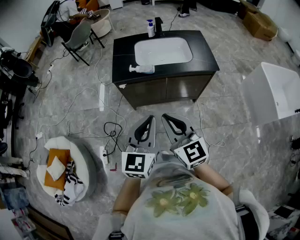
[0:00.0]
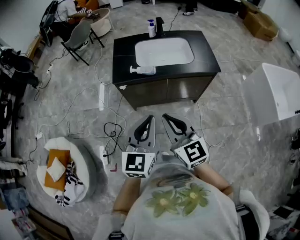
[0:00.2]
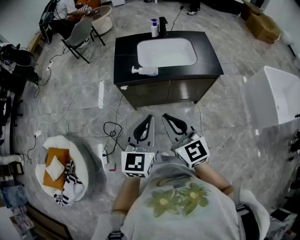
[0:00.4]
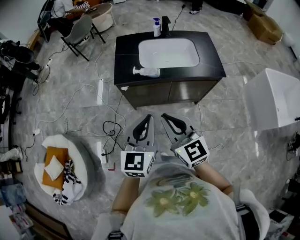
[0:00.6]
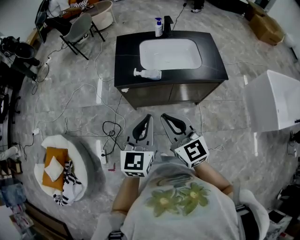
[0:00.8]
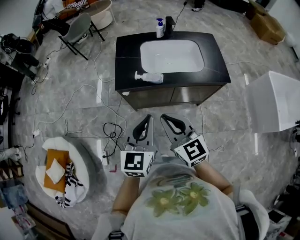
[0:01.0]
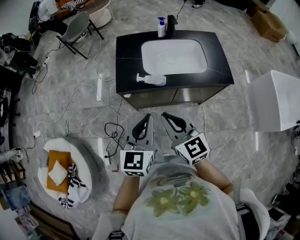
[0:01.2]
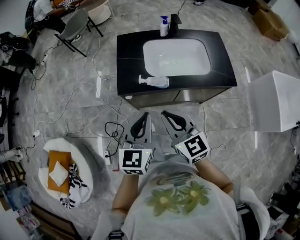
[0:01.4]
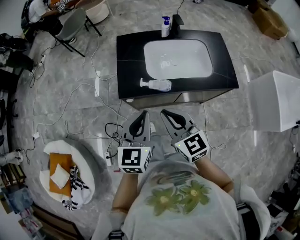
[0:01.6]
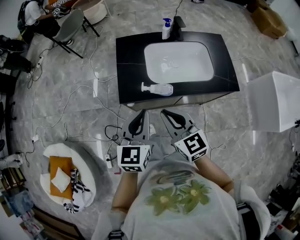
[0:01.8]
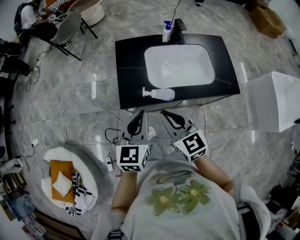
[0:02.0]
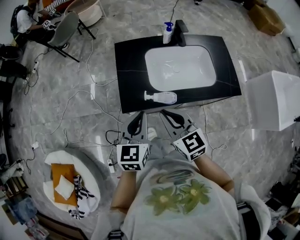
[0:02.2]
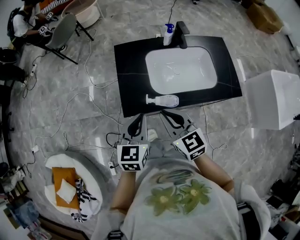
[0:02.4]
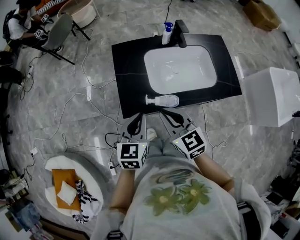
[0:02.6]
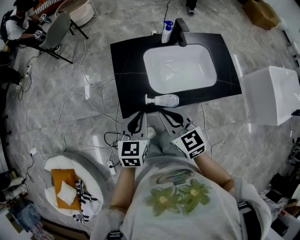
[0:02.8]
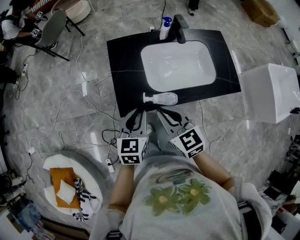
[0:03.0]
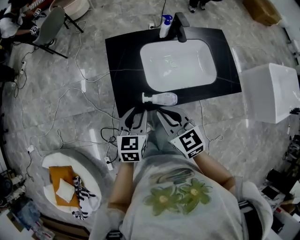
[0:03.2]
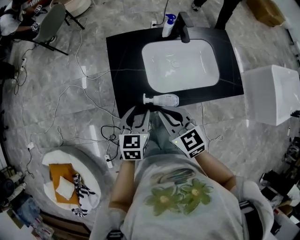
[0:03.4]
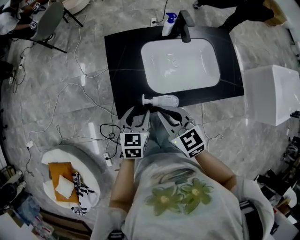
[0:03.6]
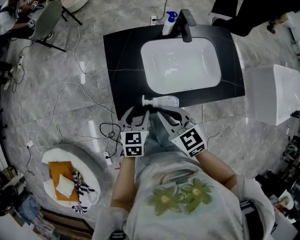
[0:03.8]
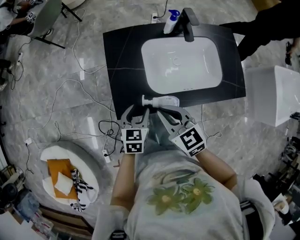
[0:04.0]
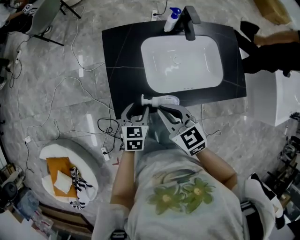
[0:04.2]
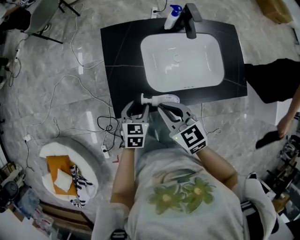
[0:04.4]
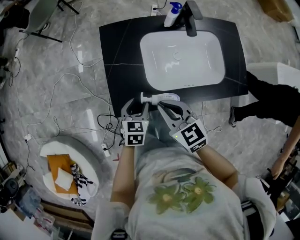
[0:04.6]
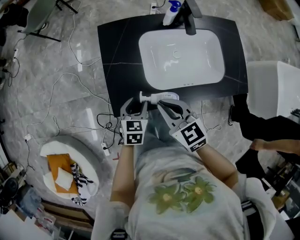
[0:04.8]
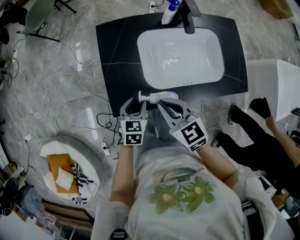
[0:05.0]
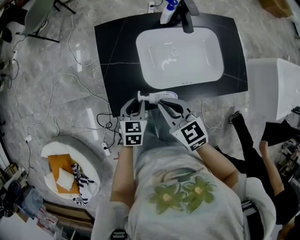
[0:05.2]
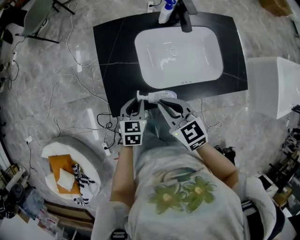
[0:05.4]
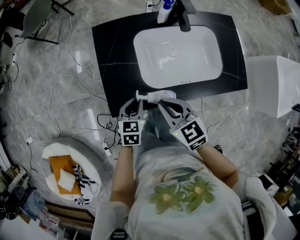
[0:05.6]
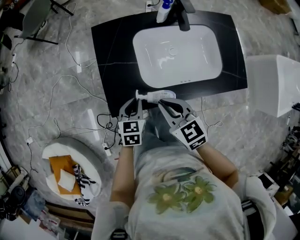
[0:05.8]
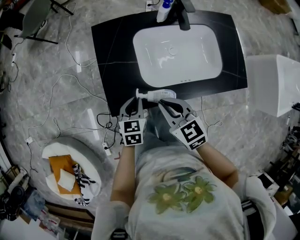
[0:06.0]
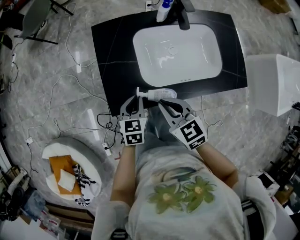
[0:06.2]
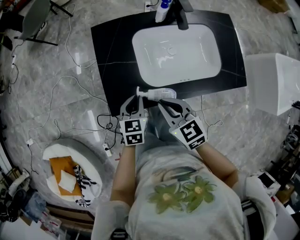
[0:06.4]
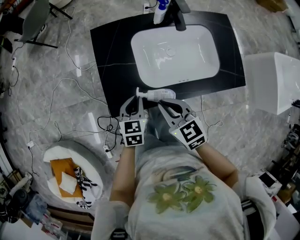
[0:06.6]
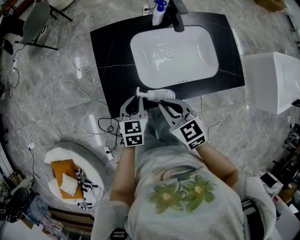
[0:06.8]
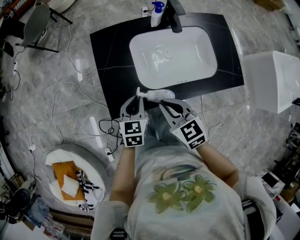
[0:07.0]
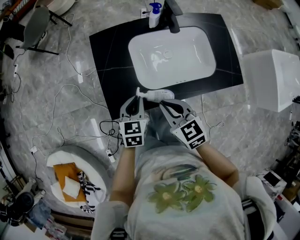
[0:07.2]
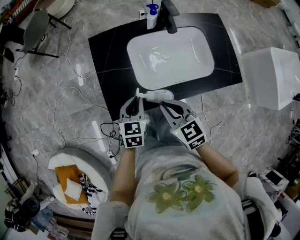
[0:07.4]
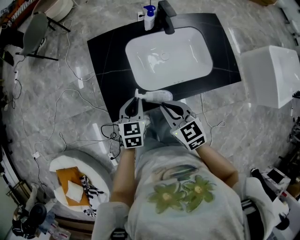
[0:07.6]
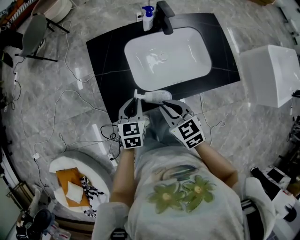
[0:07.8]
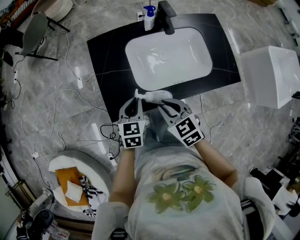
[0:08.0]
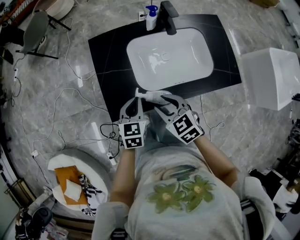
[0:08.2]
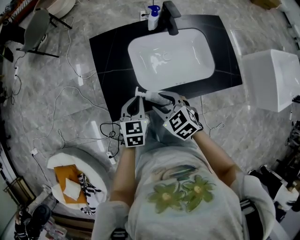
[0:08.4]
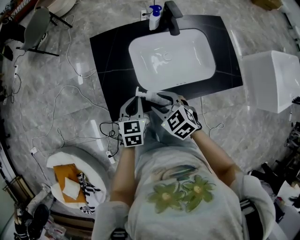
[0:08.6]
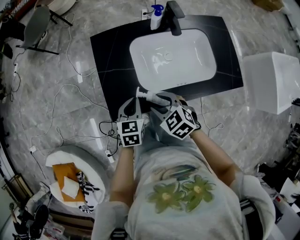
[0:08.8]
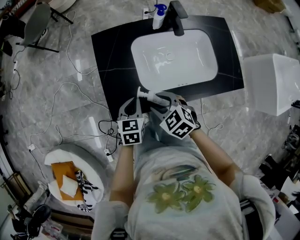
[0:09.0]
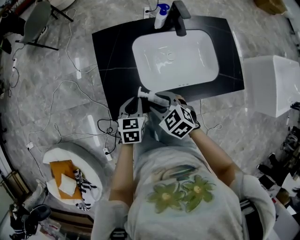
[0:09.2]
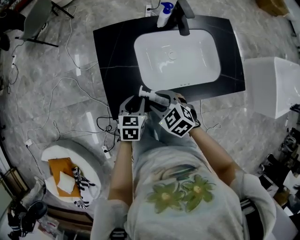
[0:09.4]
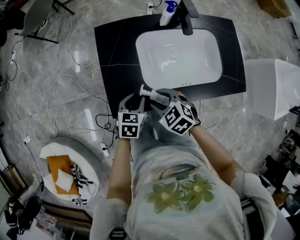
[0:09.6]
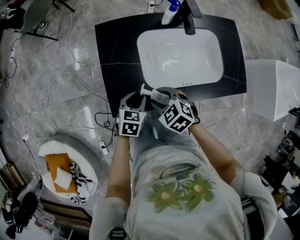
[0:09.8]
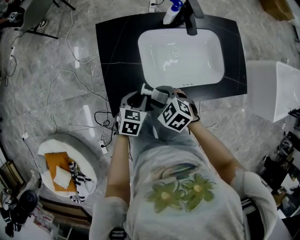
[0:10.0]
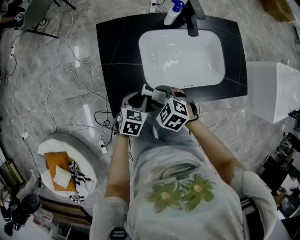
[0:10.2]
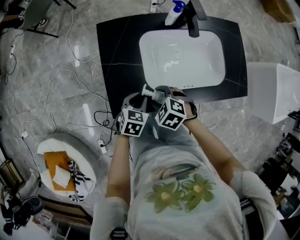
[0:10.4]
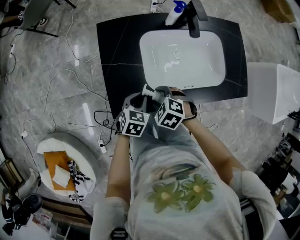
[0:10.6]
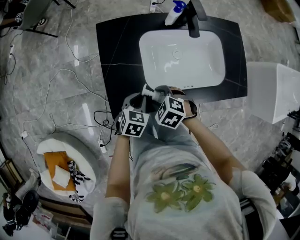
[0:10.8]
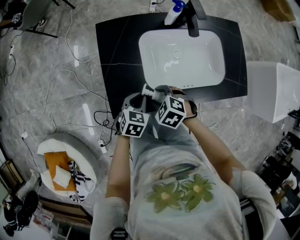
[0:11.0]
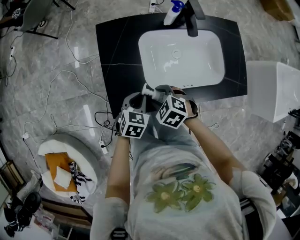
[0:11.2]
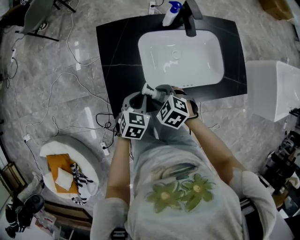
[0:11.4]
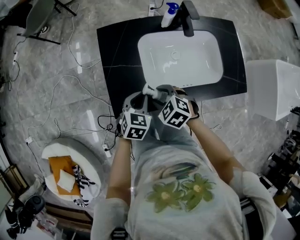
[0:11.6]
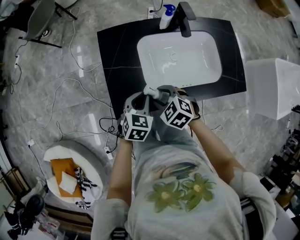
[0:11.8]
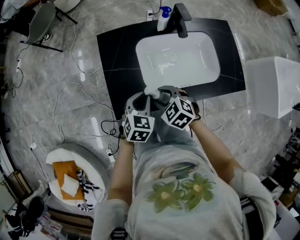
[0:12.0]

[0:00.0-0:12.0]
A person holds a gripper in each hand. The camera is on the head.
0:00.0 to 0:01.6: Both grippers move forward, some 30 cm.
0:01.6 to 0:03.0: The left gripper moves forward and downward, roughly 20 cm, while the right gripper shifts about 15 cm forward.
0:03.0 to 0:04.4: The left gripper heads downward, covering roughly 15 cm, and opens. Meanwhile the right gripper moves downward and forward, roughly 10 cm.
0:04.4 to 0:06.0: The left gripper closes.
0:06.0 to 0:07.6: The left gripper goes some 5 cm upward.
0:07.6 to 0:09.0: The right gripper shifts about 5 cm downward, swivels some 30 degrees, and opens its fingers.
0:09.0 to 0:10.4: The grippers both shift downward by some 5 cm. The right gripper swivels about 20 degrees.
0:10.4 to 0:12.0: The left gripper shifts some 10 cm upward, while the right gripper travels upward by about 5 cm.

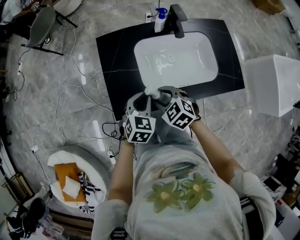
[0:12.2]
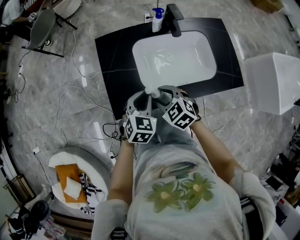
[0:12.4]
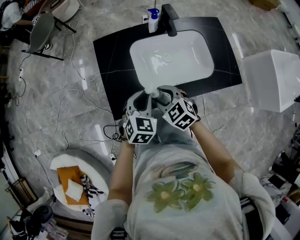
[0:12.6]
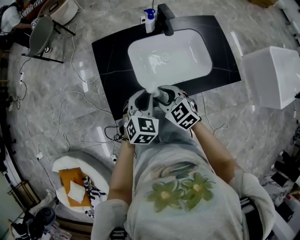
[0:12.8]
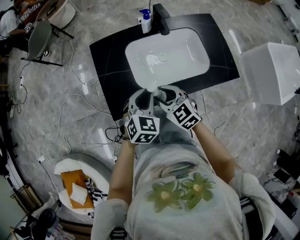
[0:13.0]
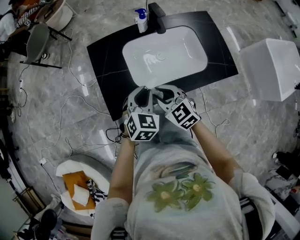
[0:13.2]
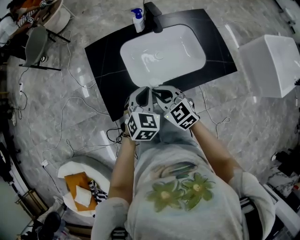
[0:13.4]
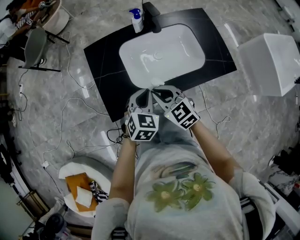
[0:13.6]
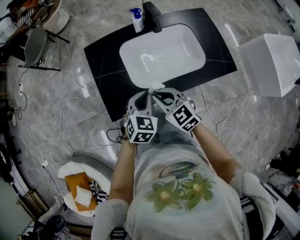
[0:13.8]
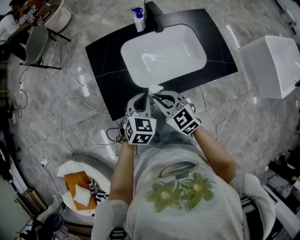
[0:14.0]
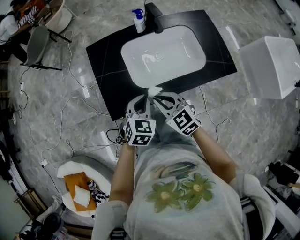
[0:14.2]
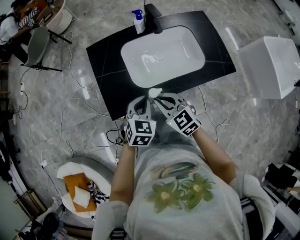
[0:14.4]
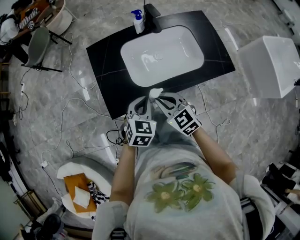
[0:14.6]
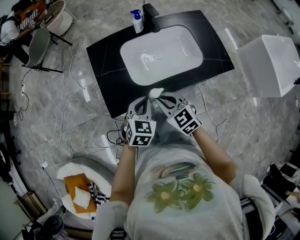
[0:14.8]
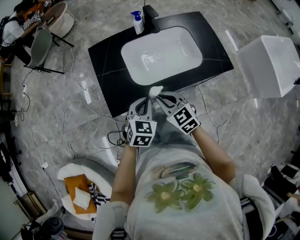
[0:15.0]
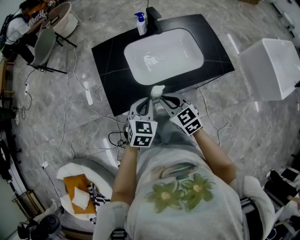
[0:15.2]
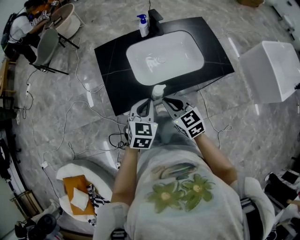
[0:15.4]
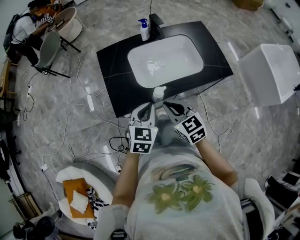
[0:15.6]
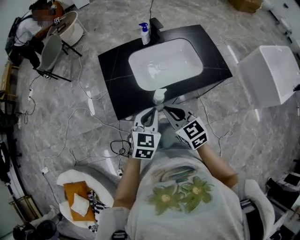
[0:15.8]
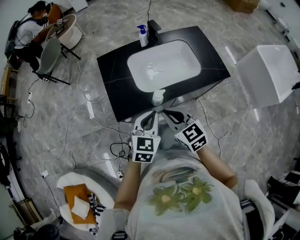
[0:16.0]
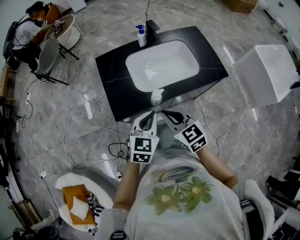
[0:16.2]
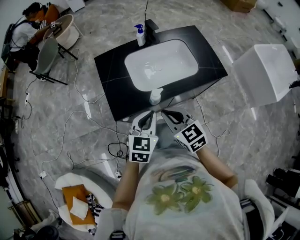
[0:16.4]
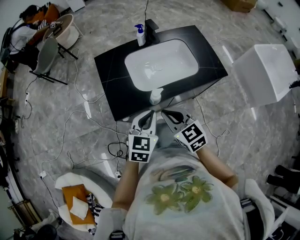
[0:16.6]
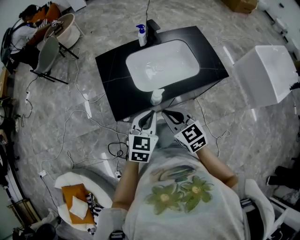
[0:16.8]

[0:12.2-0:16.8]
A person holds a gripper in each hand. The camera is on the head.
0:12.2 to 0:13.8: The right gripper is displaced upward by roughly 5 cm, swivels roughly 30 degrees, and closes up. Meanwhile the left gripper travels to the right by approximately 5 cm.
0:13.8 to 0:15.2: The grippers both shift backward by approximately 5 cm.
0:15.2 to 0:16.8: The right gripper goes approximately 10 cm upward and backward; the left gripper is displaced backward and upward by approximately 10 cm.

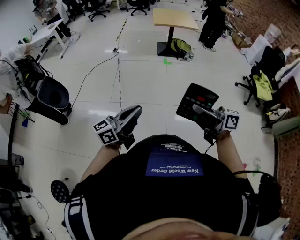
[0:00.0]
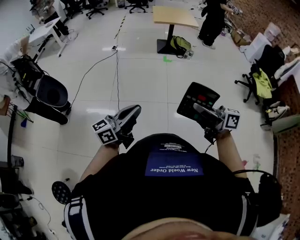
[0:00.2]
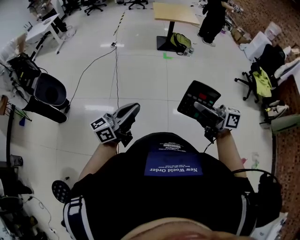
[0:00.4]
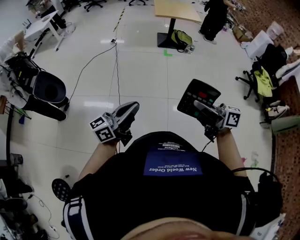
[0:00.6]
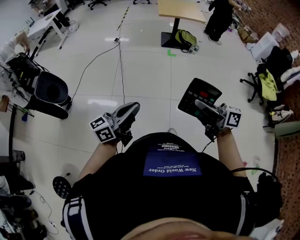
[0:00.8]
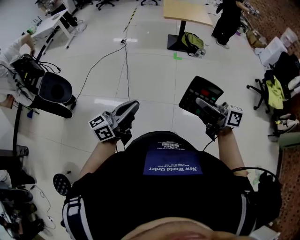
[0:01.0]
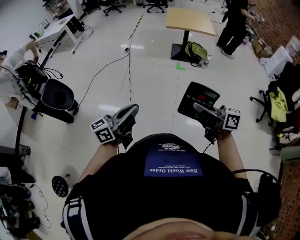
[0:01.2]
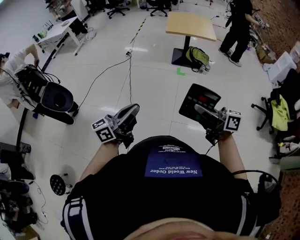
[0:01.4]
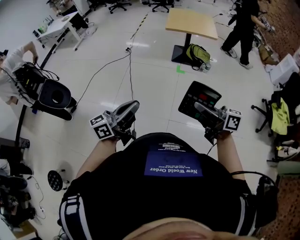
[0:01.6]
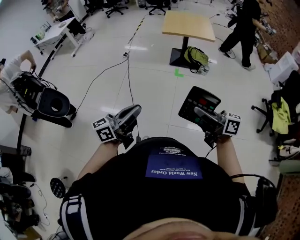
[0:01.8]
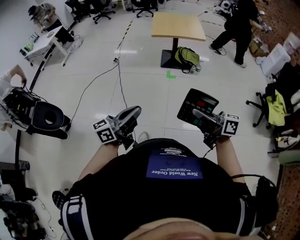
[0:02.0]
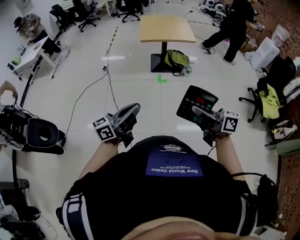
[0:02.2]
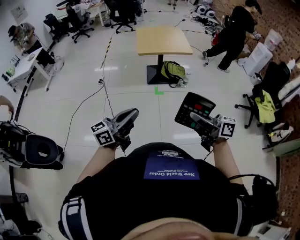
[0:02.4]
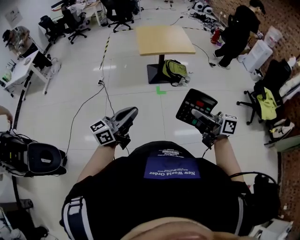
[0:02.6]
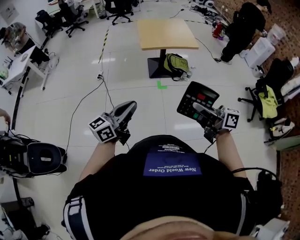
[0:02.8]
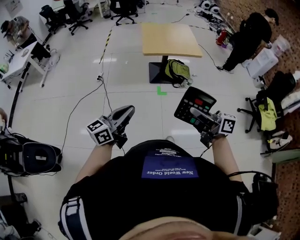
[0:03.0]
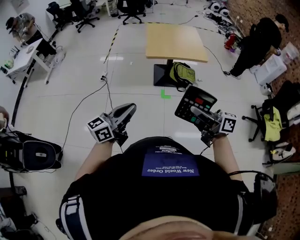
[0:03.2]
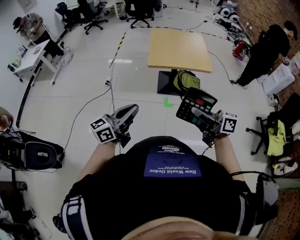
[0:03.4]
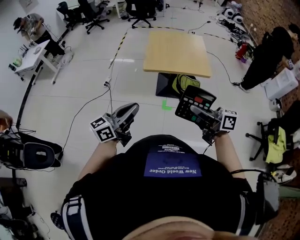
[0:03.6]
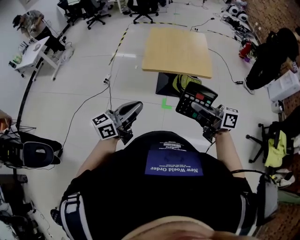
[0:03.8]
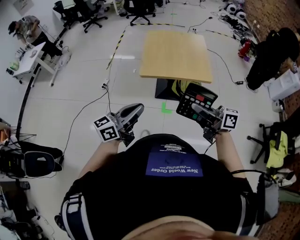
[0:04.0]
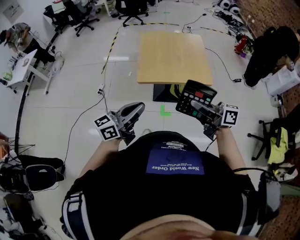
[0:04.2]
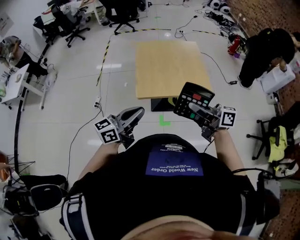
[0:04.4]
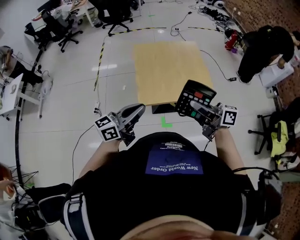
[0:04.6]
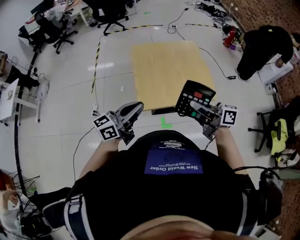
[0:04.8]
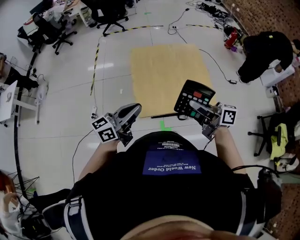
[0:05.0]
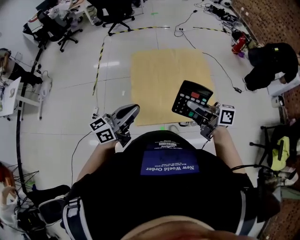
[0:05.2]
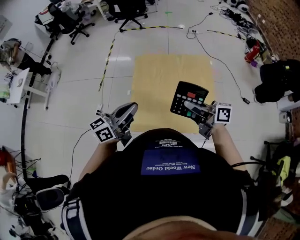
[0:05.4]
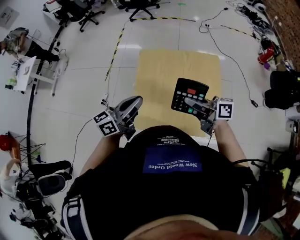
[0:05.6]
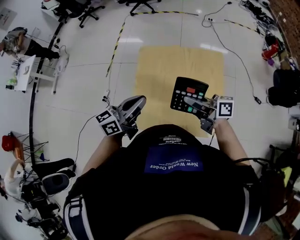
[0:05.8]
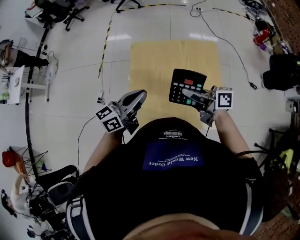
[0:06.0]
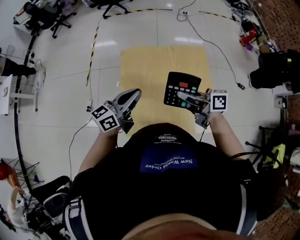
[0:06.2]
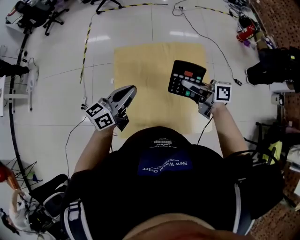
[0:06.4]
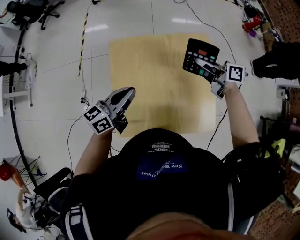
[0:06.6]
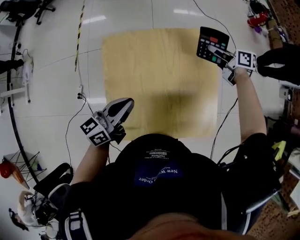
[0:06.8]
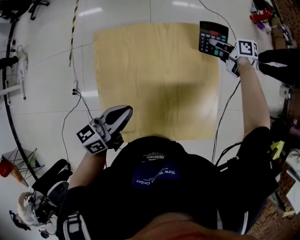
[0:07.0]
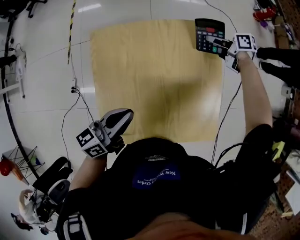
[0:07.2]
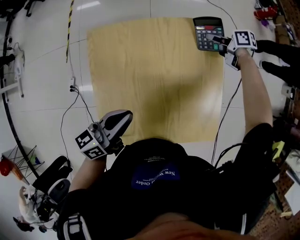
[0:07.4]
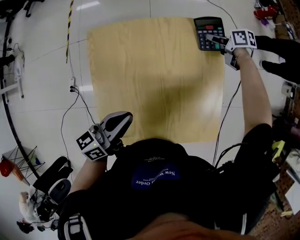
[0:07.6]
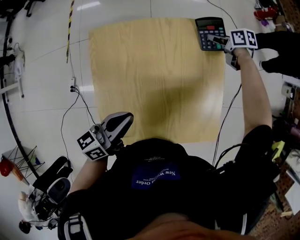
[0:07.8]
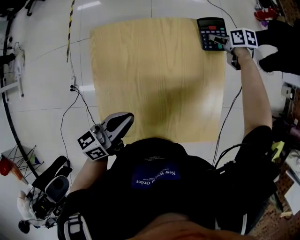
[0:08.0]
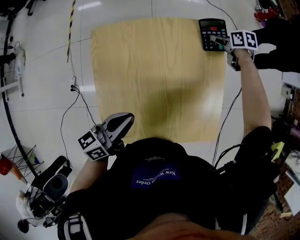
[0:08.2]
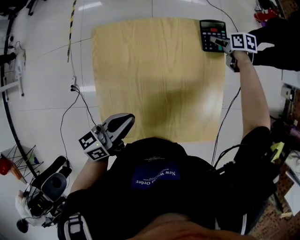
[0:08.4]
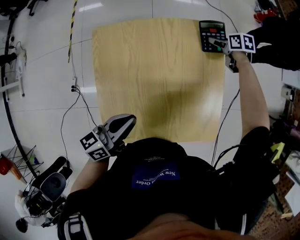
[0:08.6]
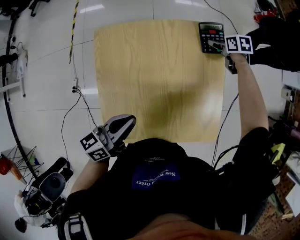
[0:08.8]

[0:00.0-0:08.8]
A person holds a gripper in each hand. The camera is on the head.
0:00.0 to 0:01.4: Both grippers move forward and to the right, approximately 30 cm.
0:01.4 to 0:03.0: The grippers both shift forward by approximately 40 cm.
0:03.0 to 0:04.4: The two grippers travel together, forward, roughly 50 cm.
0:04.4 to 0:05.8: The grippers both shift forward by about 40 cm.
0:05.8 to 0:07.4: The right gripper goes roughly 50 cm forward, downward and to the right, and points its fingers some 40 degrees further downward. The left gripper goes roughly 20 cm downward and forward.
0:07.4 to 0:08.8: The right gripper turns by roughly 30 degrees, and opens.
